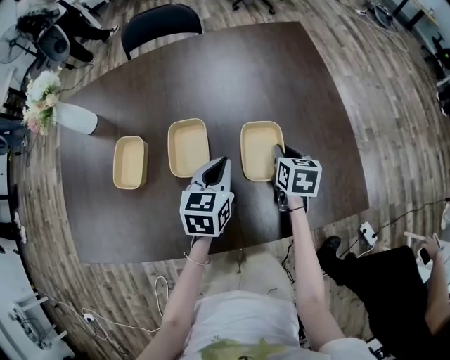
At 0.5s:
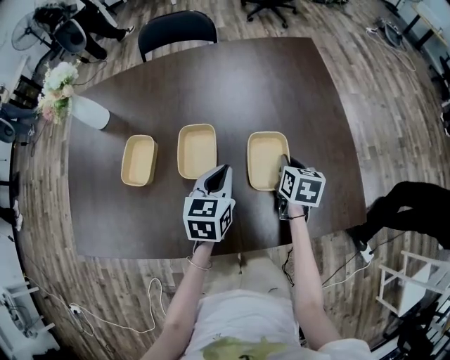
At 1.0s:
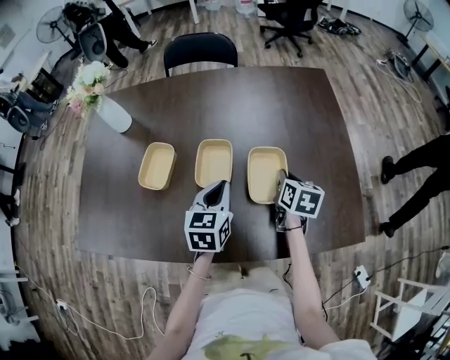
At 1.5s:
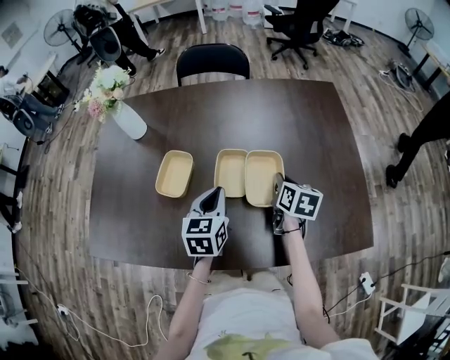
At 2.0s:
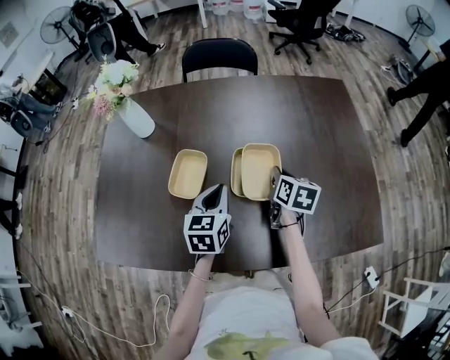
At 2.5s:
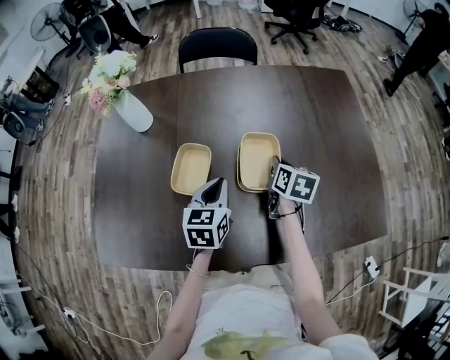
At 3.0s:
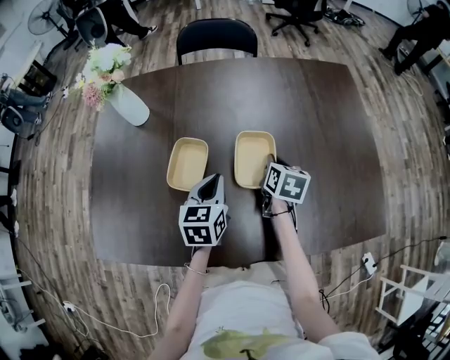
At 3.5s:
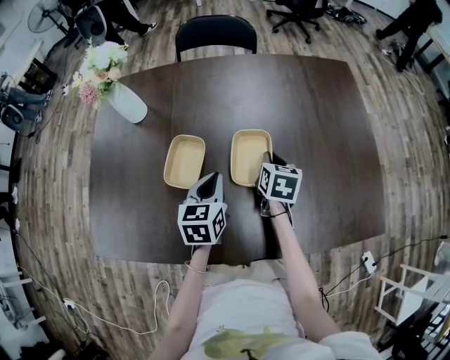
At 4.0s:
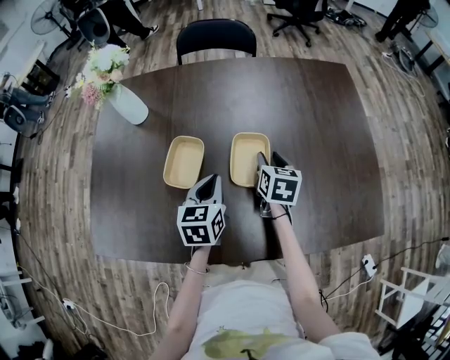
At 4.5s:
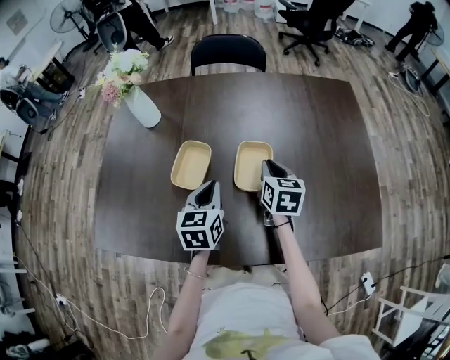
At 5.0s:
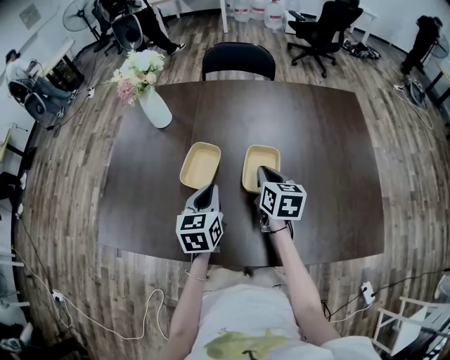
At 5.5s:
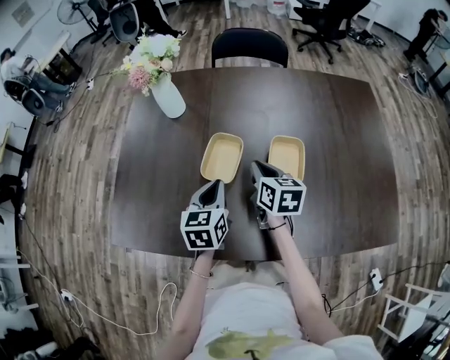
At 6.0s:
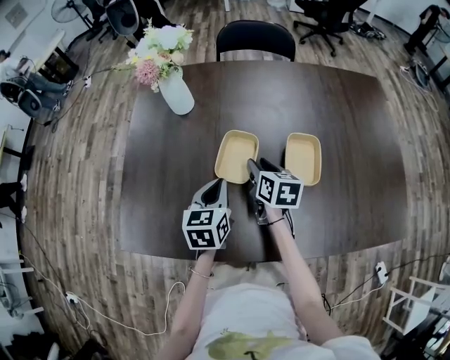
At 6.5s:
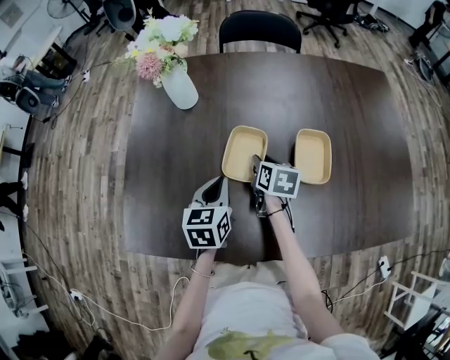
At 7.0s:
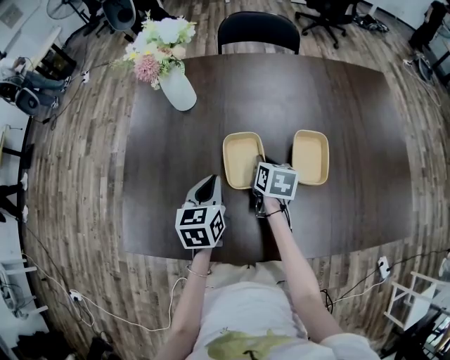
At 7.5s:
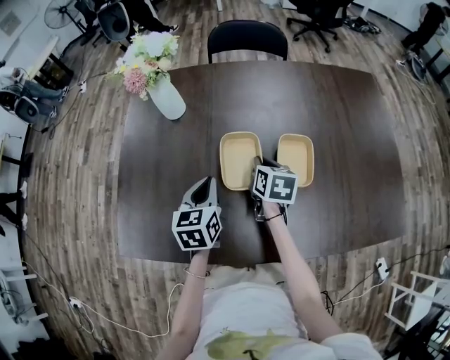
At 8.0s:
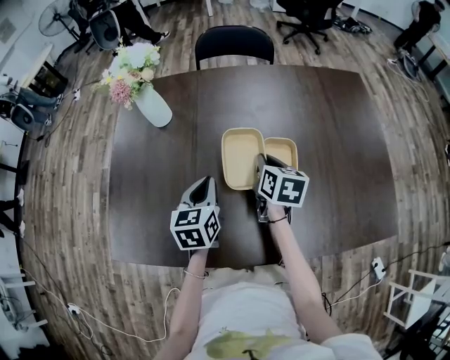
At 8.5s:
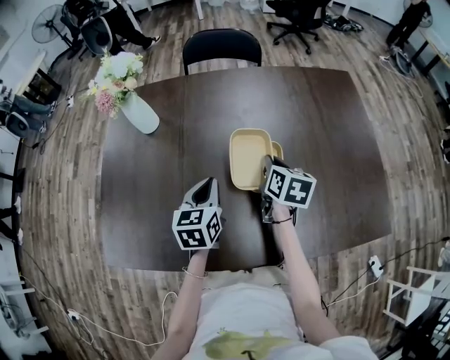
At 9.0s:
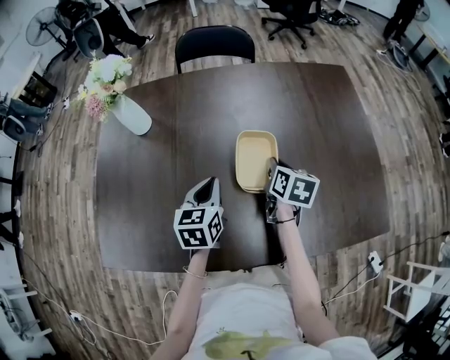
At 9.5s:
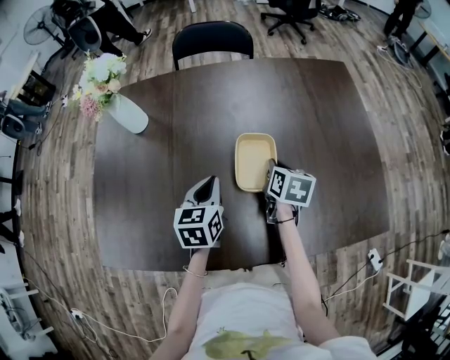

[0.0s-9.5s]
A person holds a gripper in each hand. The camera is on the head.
0.0s to 2.0s: The two grippers go roughly 15 cm to the left.
2.0s to 4.0s: The right gripper opens up.
4.0s to 5.5s: Both grippers move to the left, some 15 cm. The right gripper closes up.
5.5s to 7.5s: The left gripper changes place by about 5 cm. Meanwhile the right gripper opens, then closes again.
7.5s to 9.5s: The grippers both shift to the right by some 15 cm.

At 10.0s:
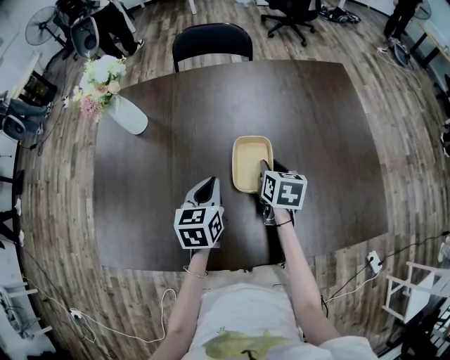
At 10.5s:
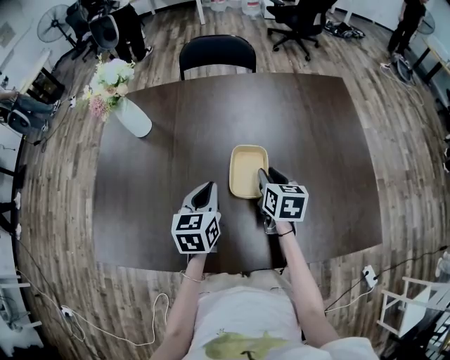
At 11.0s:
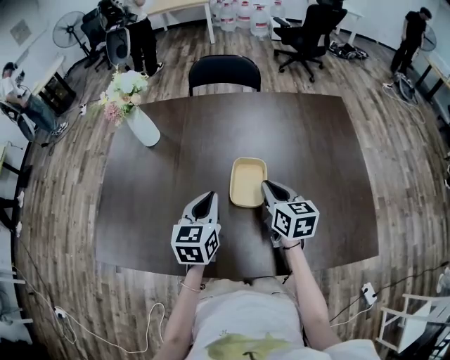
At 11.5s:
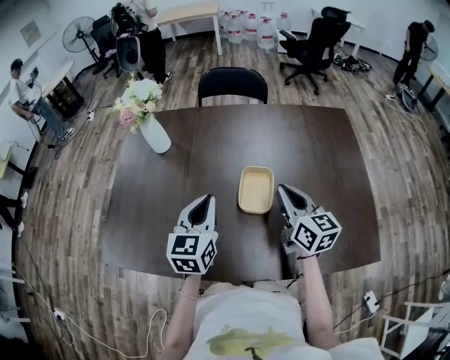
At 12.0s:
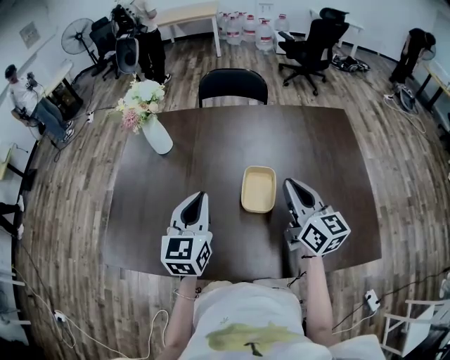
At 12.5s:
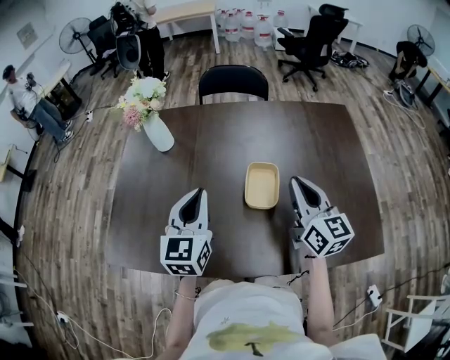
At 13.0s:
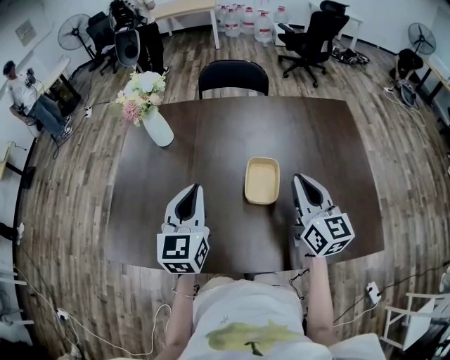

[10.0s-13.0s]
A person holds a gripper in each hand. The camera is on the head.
10.0s to 11.5s: Both grippers travel together upward, roughly 15 cm. The right gripper tips its fingers upward by about 30 degrees.
11.5s to 13.0s: The left gripper shifts by roughly 5 cm, while the right gripper changes place by about 5 cm.

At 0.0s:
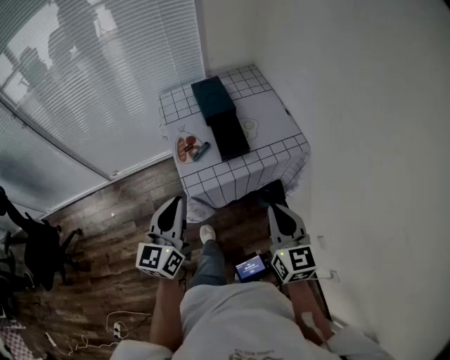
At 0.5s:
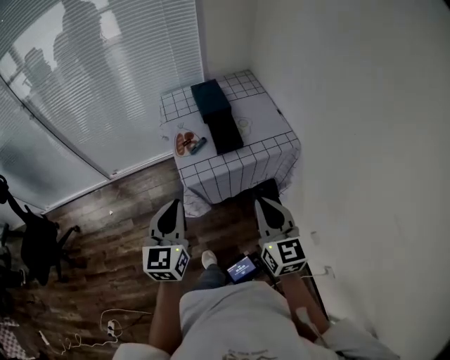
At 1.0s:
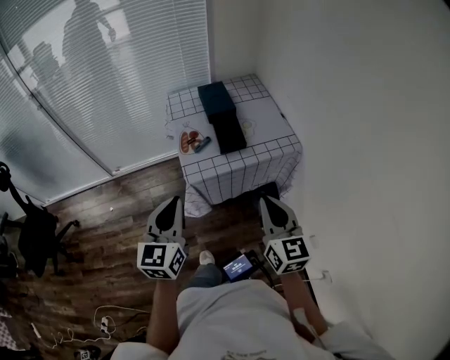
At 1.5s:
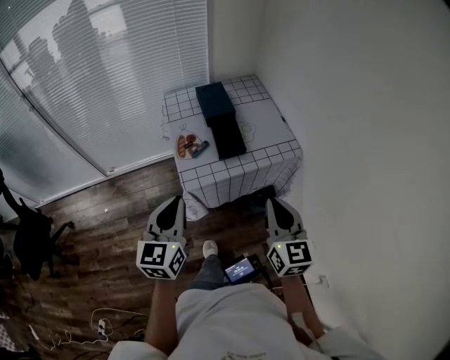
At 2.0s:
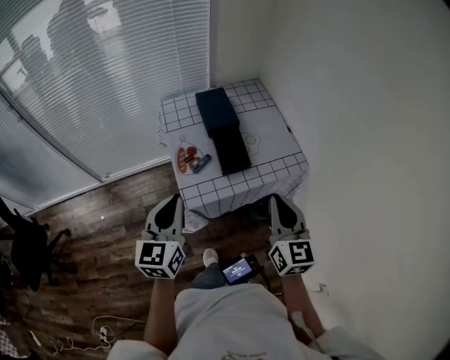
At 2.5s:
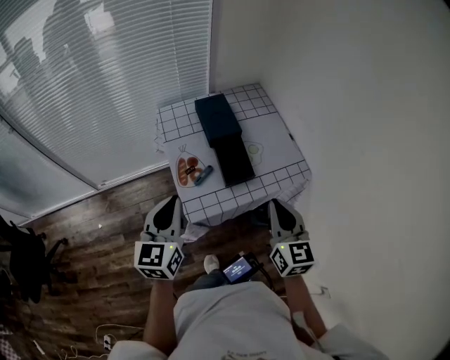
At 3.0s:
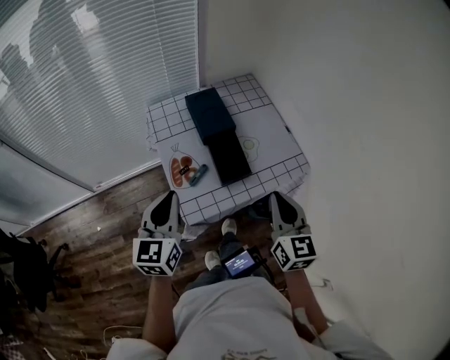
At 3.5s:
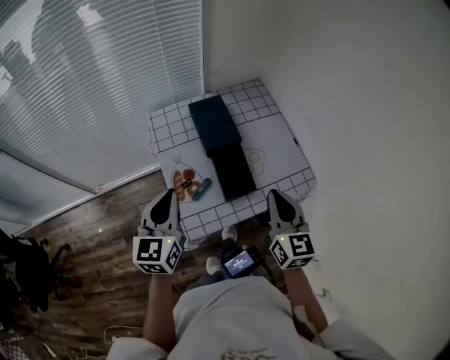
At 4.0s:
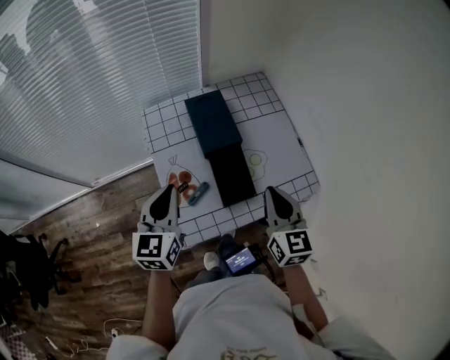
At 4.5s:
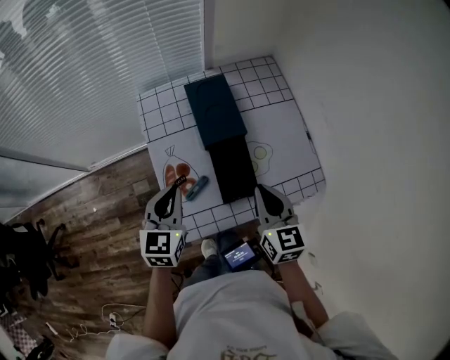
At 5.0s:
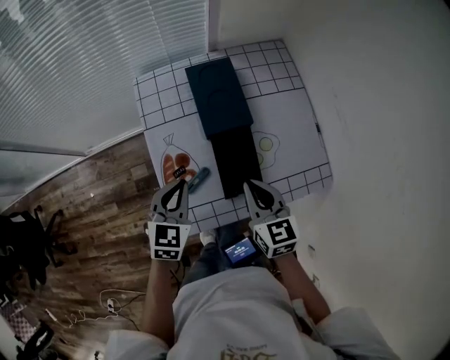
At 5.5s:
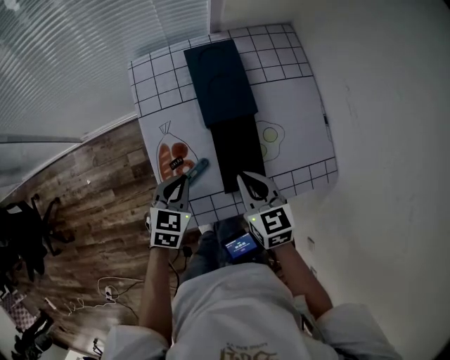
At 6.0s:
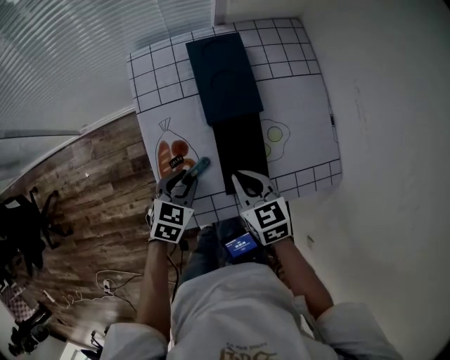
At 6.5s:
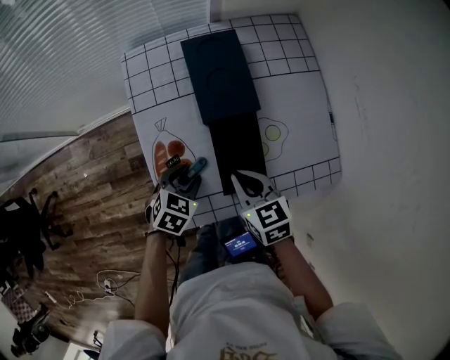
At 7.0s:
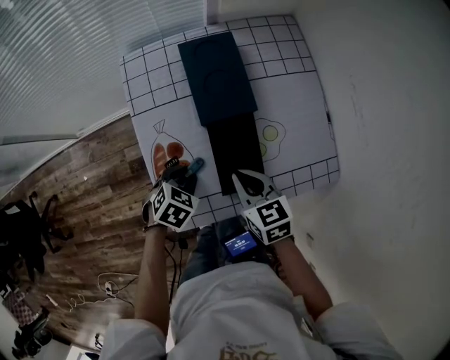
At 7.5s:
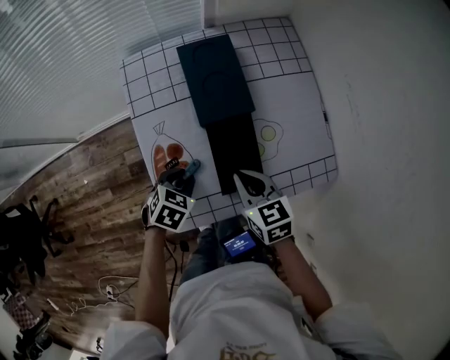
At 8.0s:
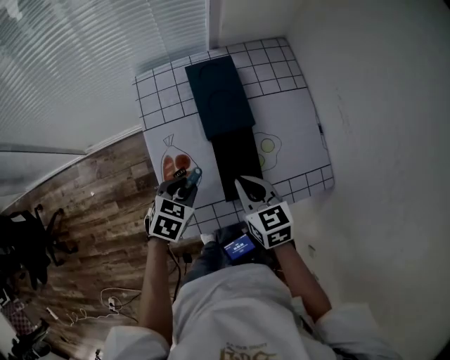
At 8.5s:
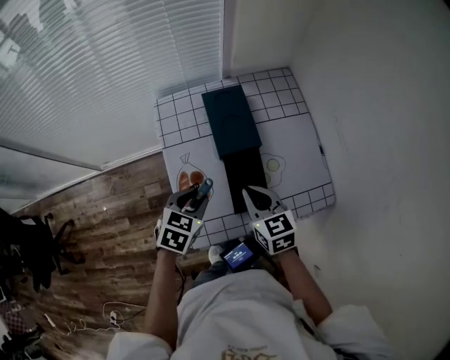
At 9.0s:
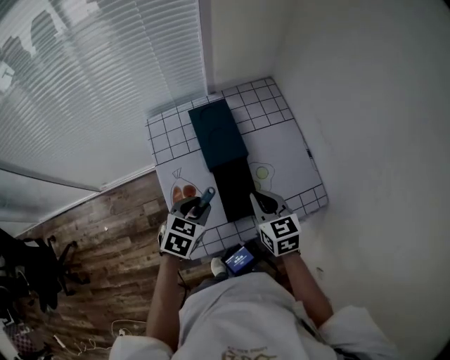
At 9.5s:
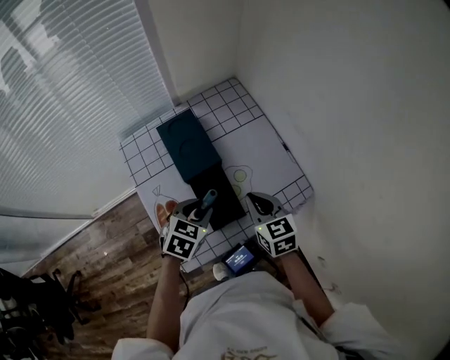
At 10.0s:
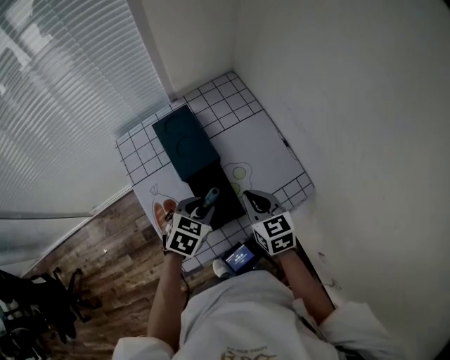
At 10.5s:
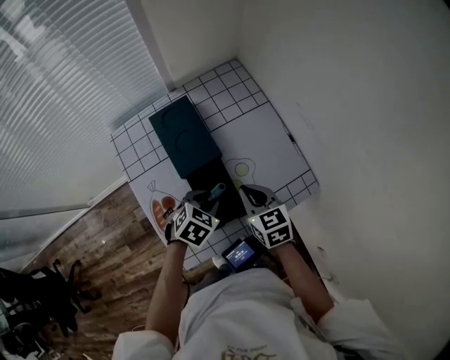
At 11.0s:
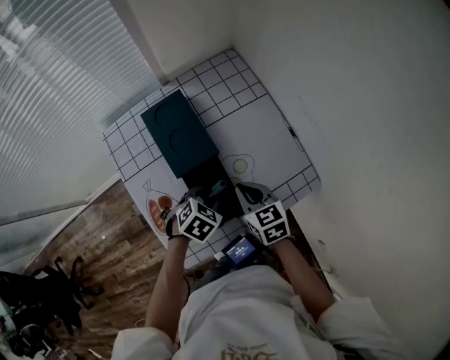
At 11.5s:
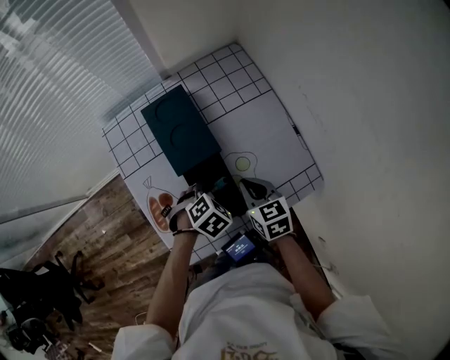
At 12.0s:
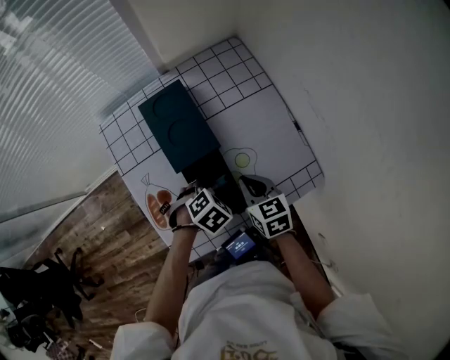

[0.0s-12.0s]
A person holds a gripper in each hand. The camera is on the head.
0.0s to 2.0s: The left gripper goes backward and returns, about 10 cm each way, while the right gripper moves forward, roughly 5 cm.
2.0s to 4.0s: The grippers both shift forward by about 20 cm.
4.0s to 6.0s: The right gripper heads downward and to the left, covering roughly 20 cm, and swivels some 40 degrees. The left gripper heads downward, covering some 25 cm, tips its fingers downward by roughly 30 degrees, and opens its fingers.
6.0s to 8.0s: There are only small adjustments of the grippers.
8.0s to 10.0s: The left gripper travels to the right, upward and forward by some 15 cm; the right gripper shifts approximately 10 cm to the right.
10.0s to 12.0s: The grippers both shift downward by about 10 cm. The left gripper swivels some 30 degrees.

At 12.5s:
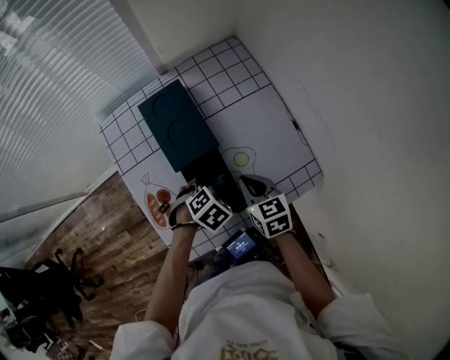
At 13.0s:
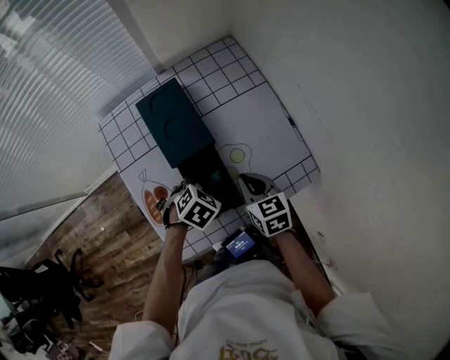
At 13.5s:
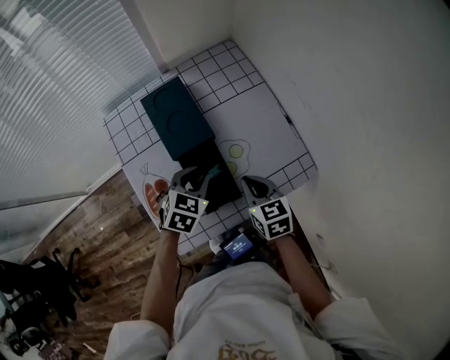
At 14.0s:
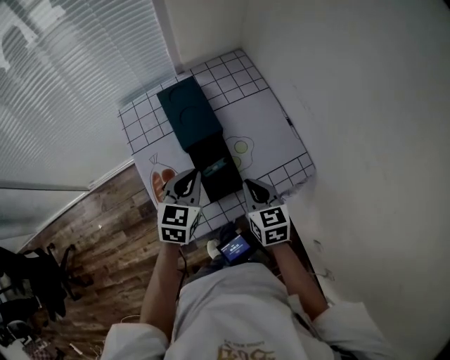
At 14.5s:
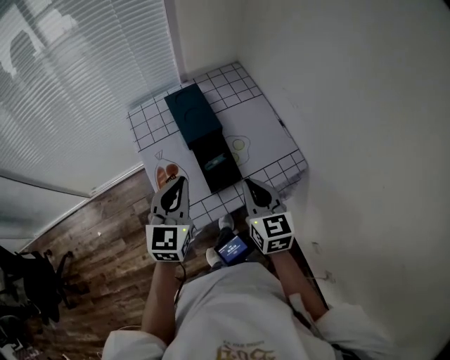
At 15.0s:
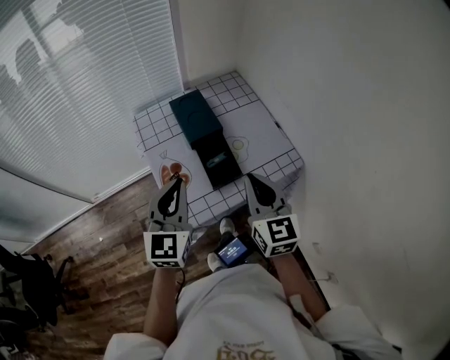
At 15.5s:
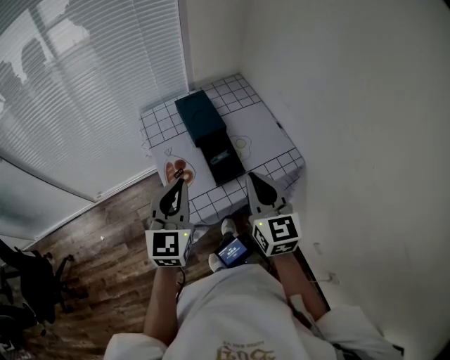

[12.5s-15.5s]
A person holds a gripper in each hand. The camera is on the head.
12.5s to 14.0s: The right gripper travels upward and backward by some 10 cm, while the left gripper is displaced upward by approximately 15 cm, tips its fingers upward by about 40 degrees, and closes up.
14.0s to 15.5s: The right gripper shifts about 20 cm upward and backward, and changes its angle by roughly 30 degrees. Meanwhile the left gripper moves backward, upward and to the left, some 25 cm, and turns by about 30 degrees.
